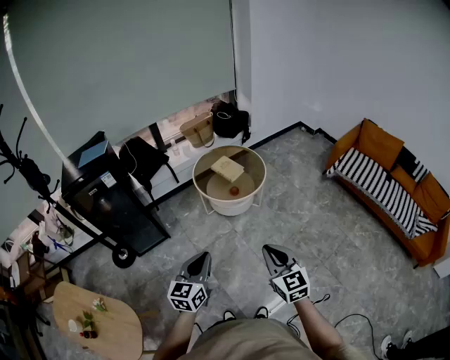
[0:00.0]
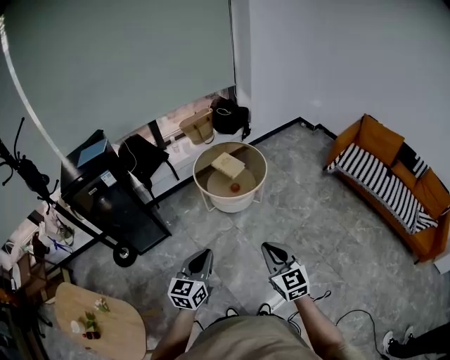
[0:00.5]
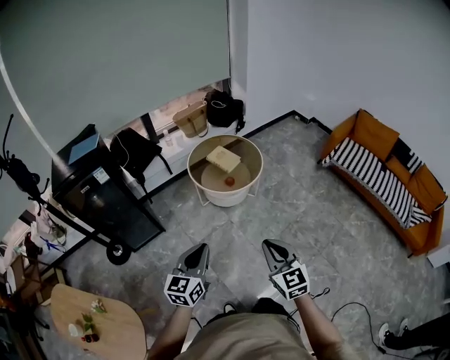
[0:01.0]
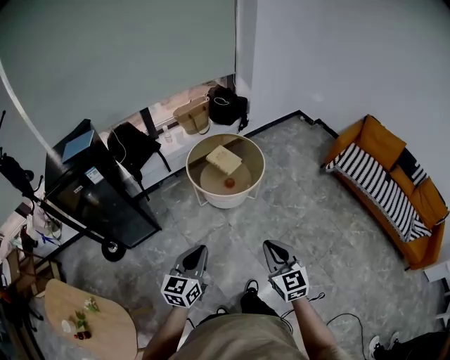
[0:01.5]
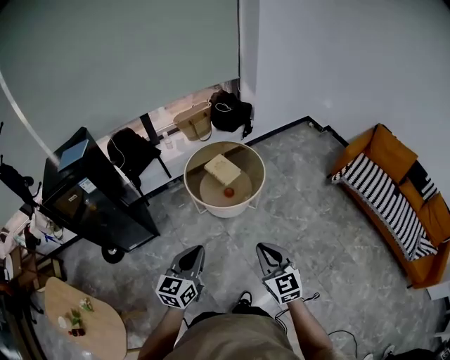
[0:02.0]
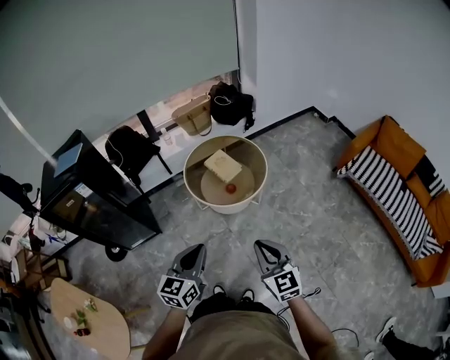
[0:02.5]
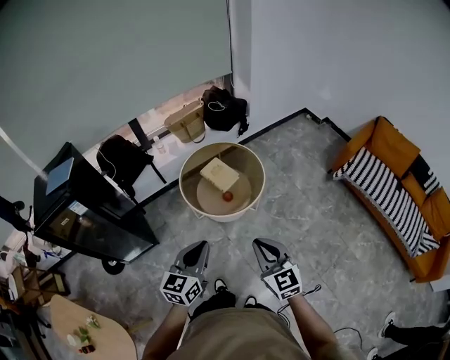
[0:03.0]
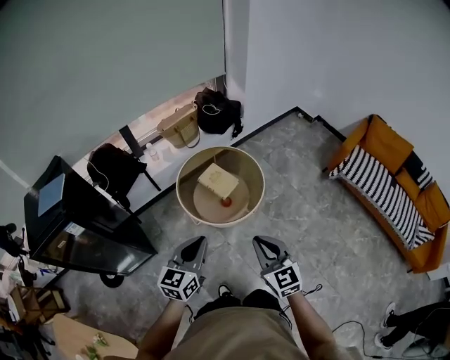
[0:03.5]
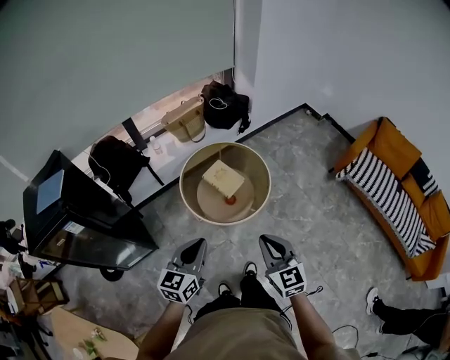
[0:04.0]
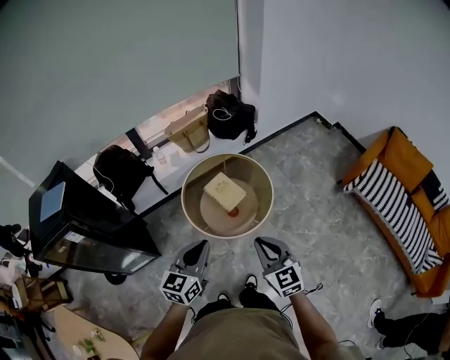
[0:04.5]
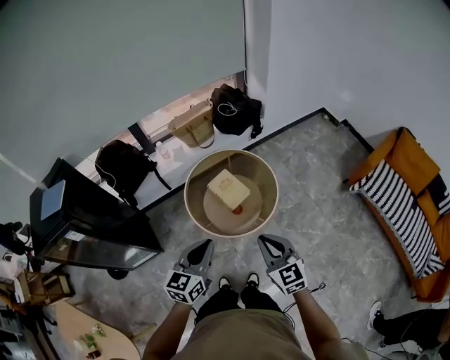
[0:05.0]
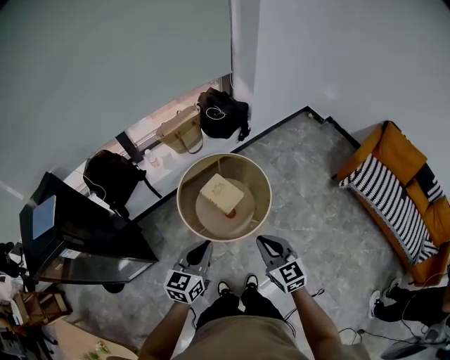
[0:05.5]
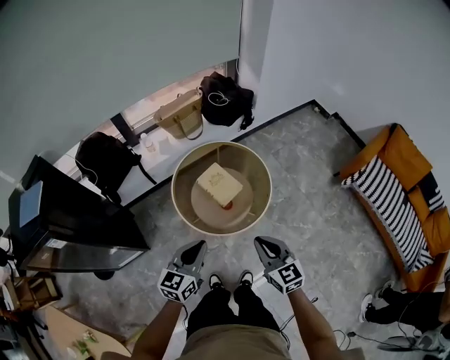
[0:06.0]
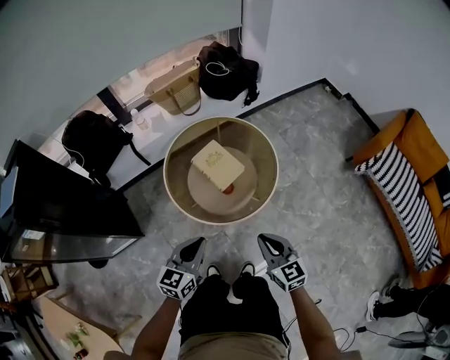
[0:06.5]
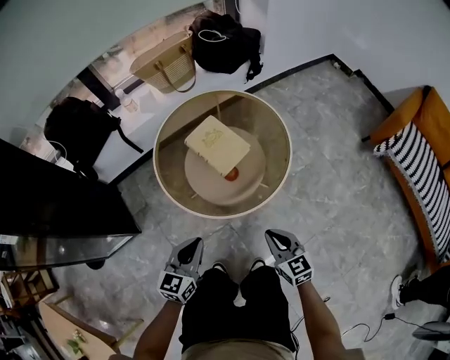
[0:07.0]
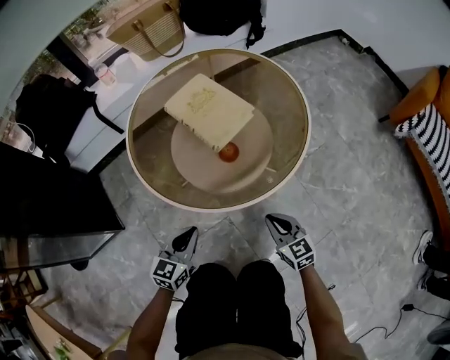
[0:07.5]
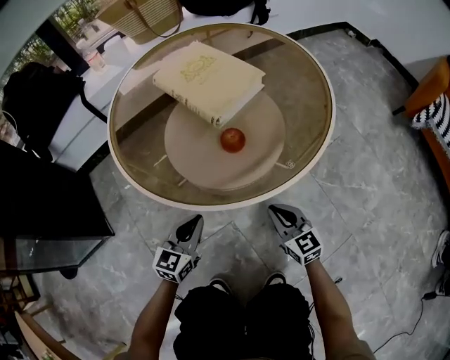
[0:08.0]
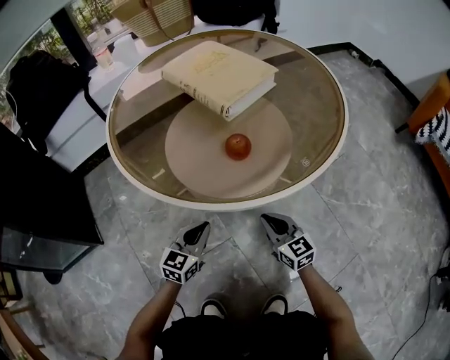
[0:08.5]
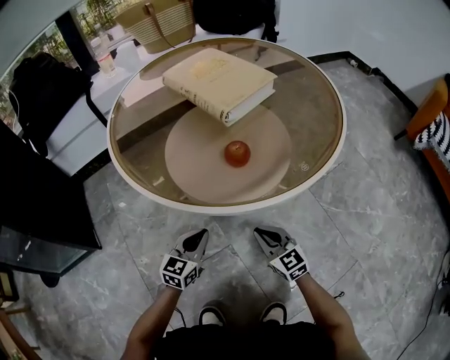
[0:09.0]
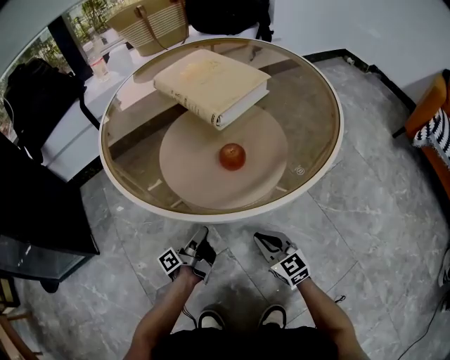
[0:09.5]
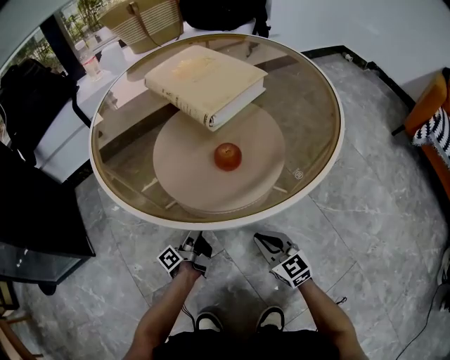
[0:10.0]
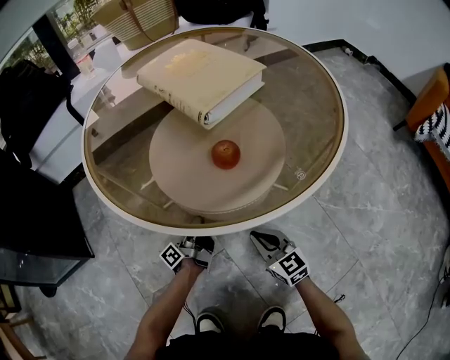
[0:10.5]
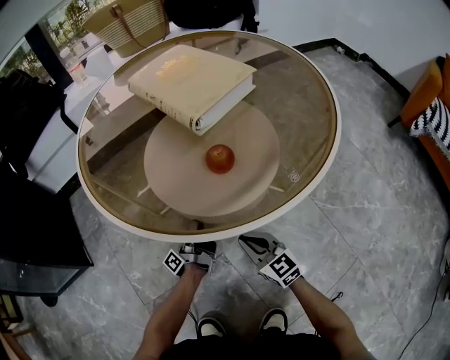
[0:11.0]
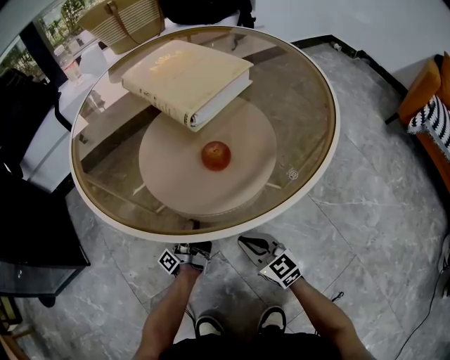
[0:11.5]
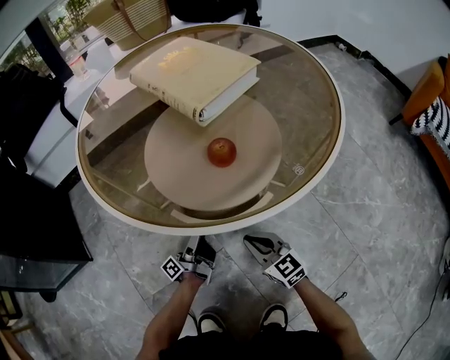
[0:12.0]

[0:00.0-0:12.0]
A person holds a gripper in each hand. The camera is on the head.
0:00.0 to 0:02.0: Both grippers move forward, some 15 cm.
0:02.0 to 0:04.0: The two grippers go roughly 20 cm forward.
0:04.0 to 0:06.0: Both grippers move forward and downward, roughly 15 cm.
0:06.0 to 0:08.0: Both grippers move downward, approximately 60 cm.
0:08.0 to 0:10.0: The right gripper is displaced downward by roughly 10 cm. The left gripper heads downward, covering roughly 20 cm, twists roughly 80 degrees counterclockwise, seen from behind, and opens up.
0:10.0 to 0:12.0: The grippers move only a little.

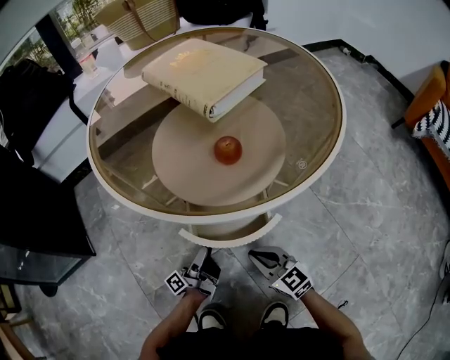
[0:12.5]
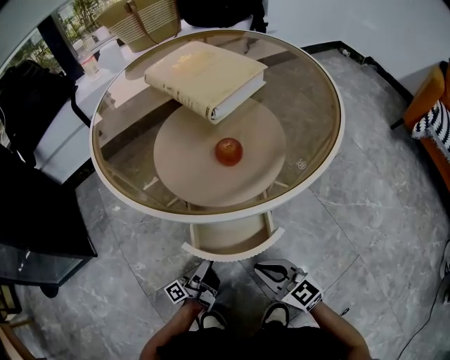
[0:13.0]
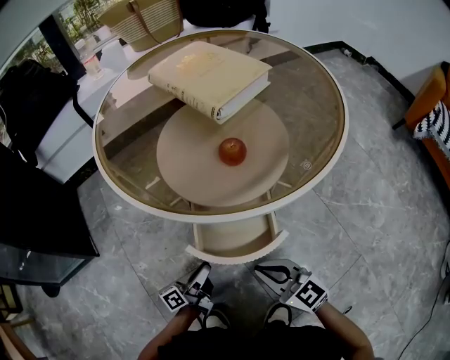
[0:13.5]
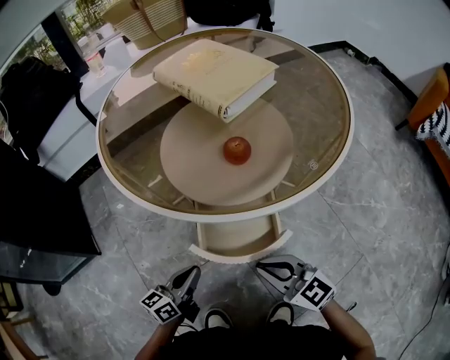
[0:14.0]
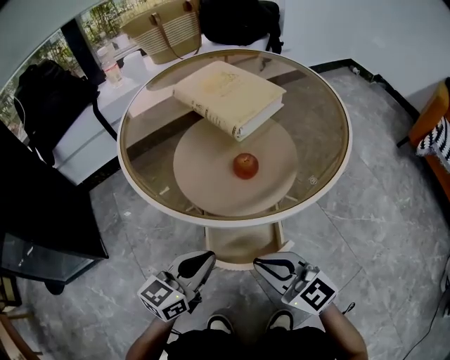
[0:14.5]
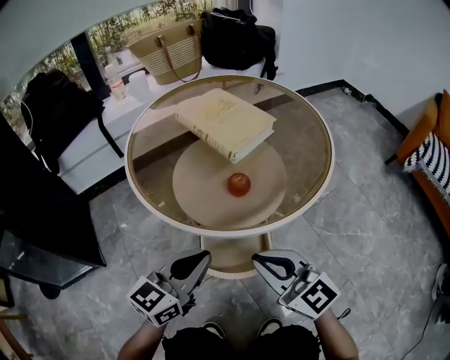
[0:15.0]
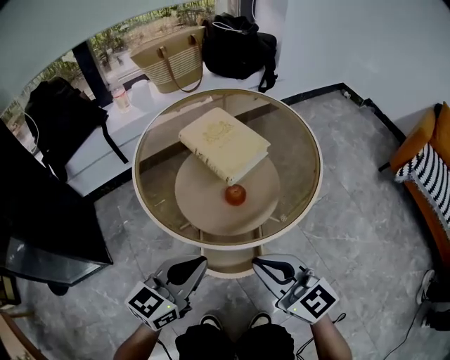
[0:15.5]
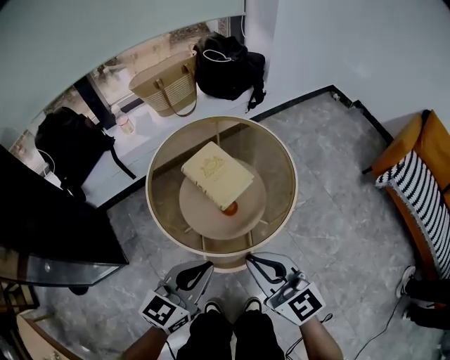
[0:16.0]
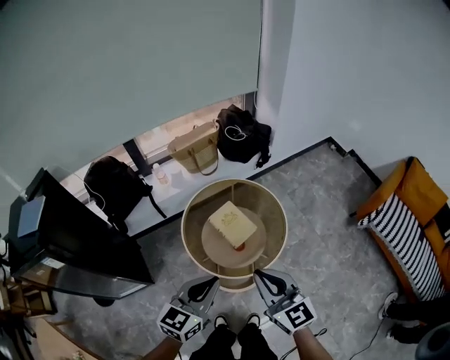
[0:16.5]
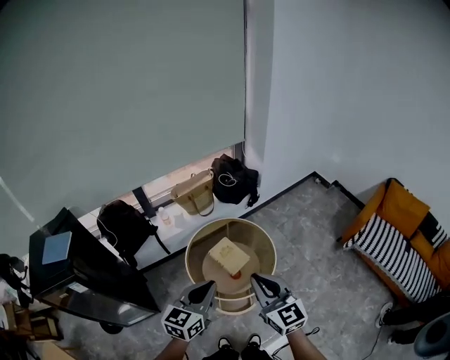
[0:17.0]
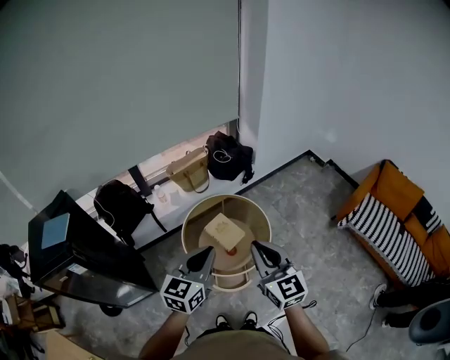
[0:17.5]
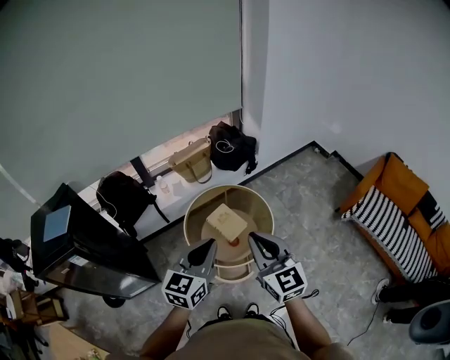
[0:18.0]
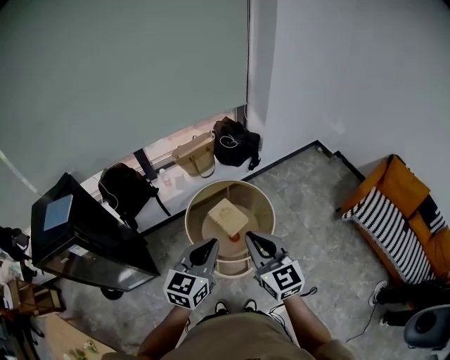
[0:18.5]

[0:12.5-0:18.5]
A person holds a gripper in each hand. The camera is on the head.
0:12.5 to 0:14.5: Both grippers move upward, some 20 cm. The left gripper rolls clockwise, seen from behind, by about 70 degrees, and closes.
0:14.5 to 0:16.5: The grippers both shift upward by some 60 cm.
0:16.5 to 0:18.5: Both grippers travel together upward, about 15 cm.

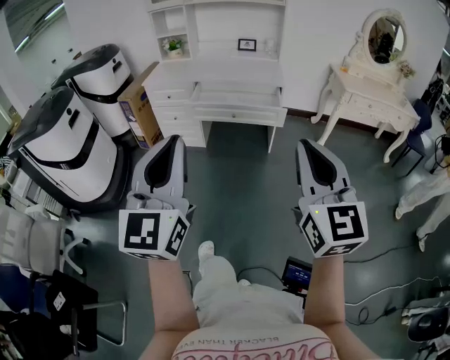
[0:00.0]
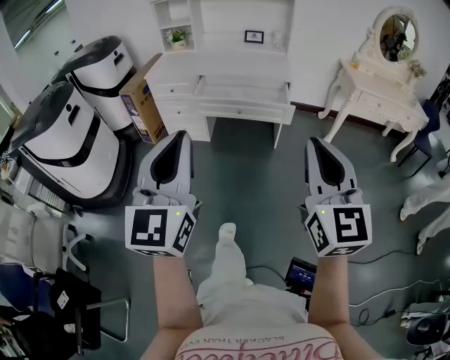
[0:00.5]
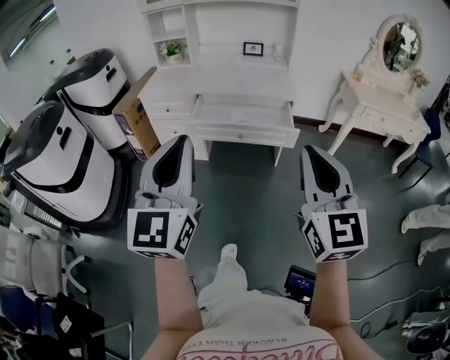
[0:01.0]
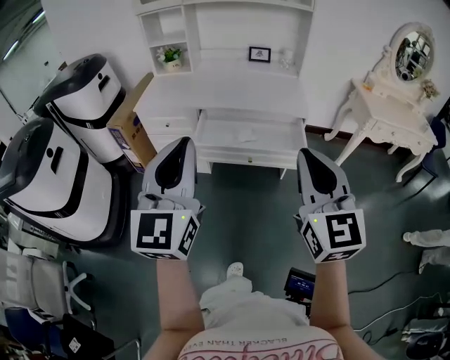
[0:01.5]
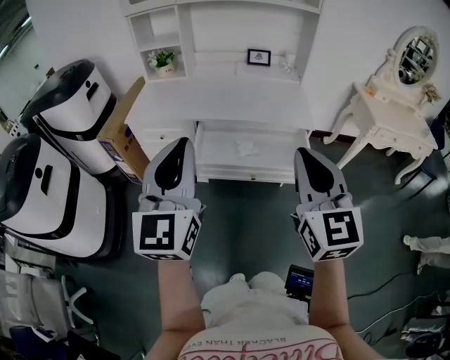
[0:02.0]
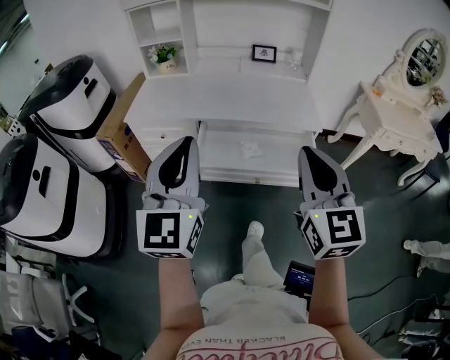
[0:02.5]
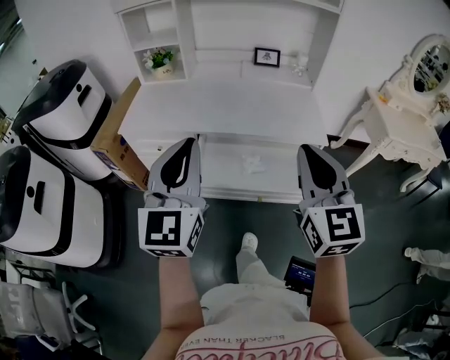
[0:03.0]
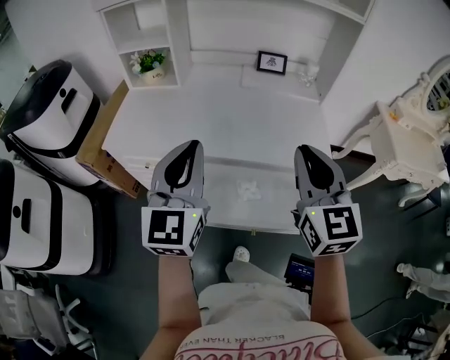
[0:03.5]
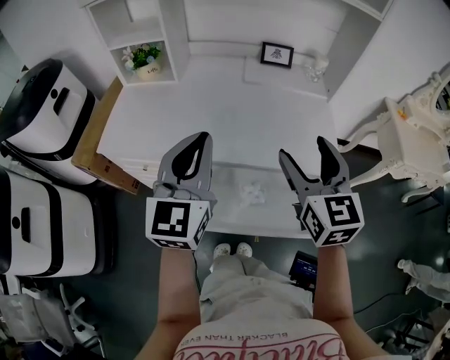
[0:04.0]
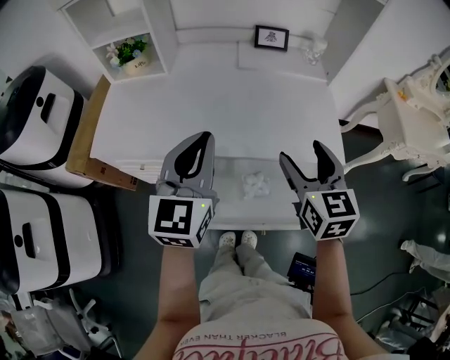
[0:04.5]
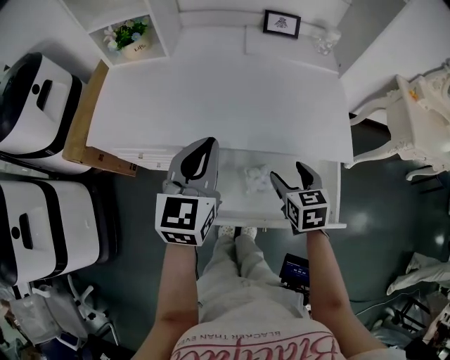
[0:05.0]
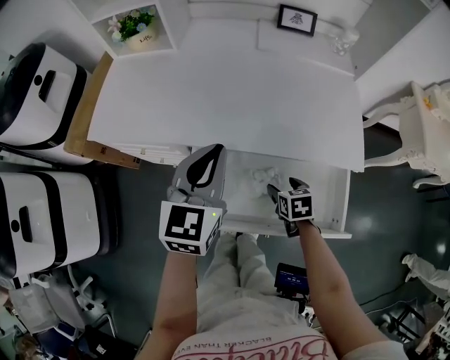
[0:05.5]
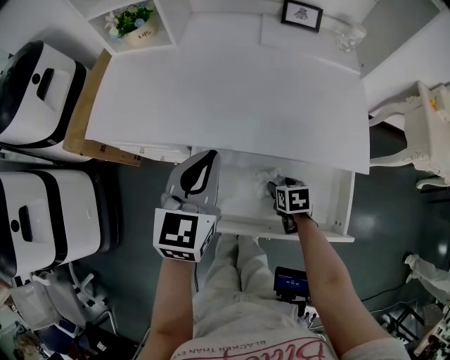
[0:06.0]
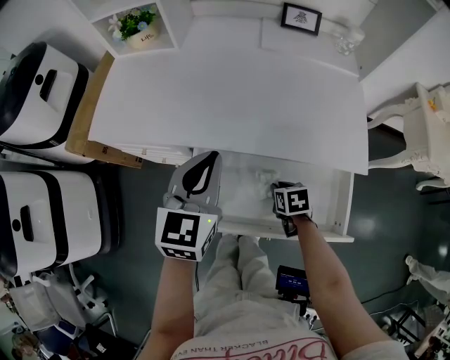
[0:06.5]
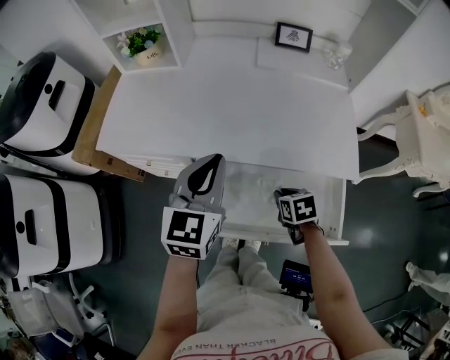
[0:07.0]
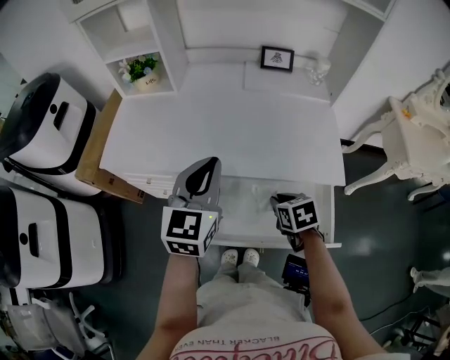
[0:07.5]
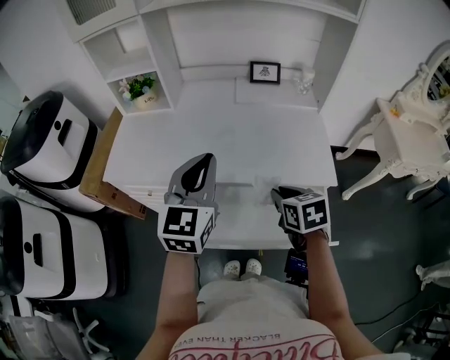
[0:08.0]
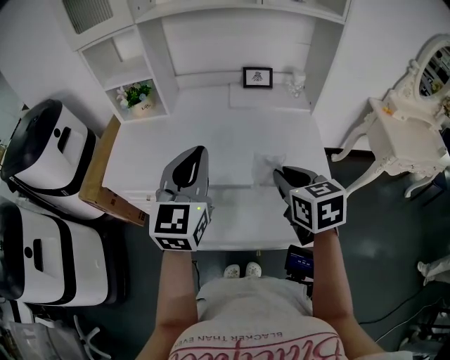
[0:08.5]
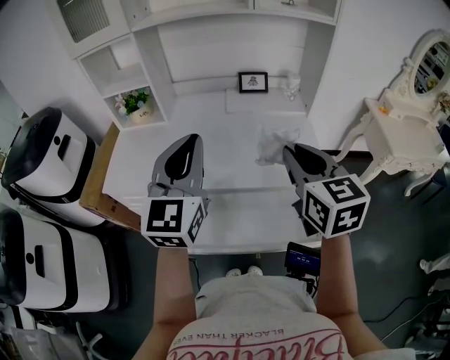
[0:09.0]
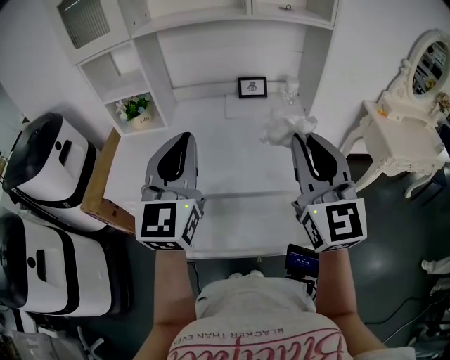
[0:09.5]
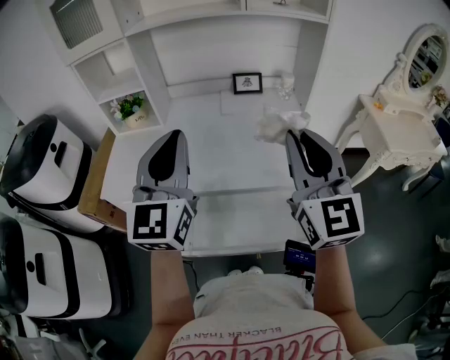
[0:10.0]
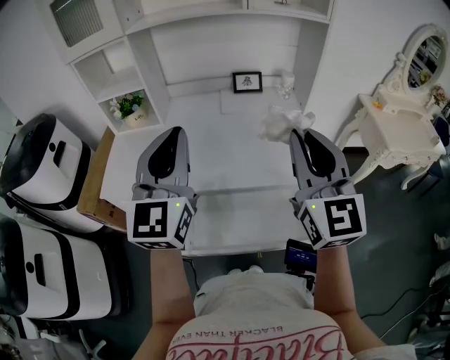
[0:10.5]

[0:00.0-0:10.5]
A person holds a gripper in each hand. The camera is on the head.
0:00.0 to 0:02.0: The two grippers travel together, forward, approximately 40 cm.
0:02.0 to 0:04.0: The two grippers go roughly 35 cm forward. The right gripper opens its fingers.
0:04.0 to 0:06.5: The right gripper shifts about 40 cm downward, tilts its fingers approximately 50 degrees downward, and closes. Meanwhile the left gripper goes about 15 cm downward, and swivels some 20 degrees.
0:06.5 to 0:08.5: The right gripper moves upward, some 35 cm, and angles its fingers upward, by about 30 degrees. Meanwhile the left gripper travels upward by roughly 15 cm.
0:08.5 to 0:10.5: The right gripper moves upward, roughly 15 cm, and tilts its fingers some 40 degrees upward, while the left gripper heads upward, covering approximately 10 cm.
